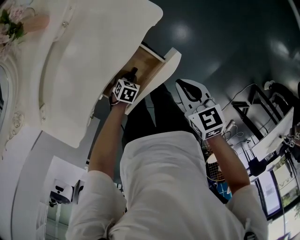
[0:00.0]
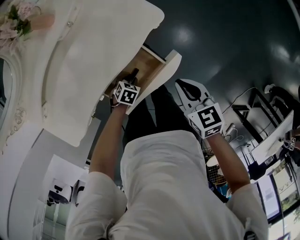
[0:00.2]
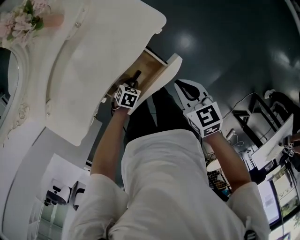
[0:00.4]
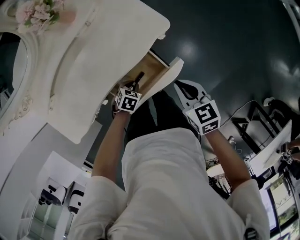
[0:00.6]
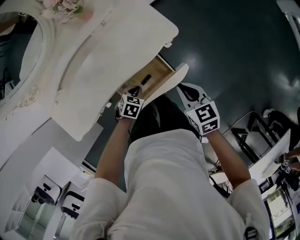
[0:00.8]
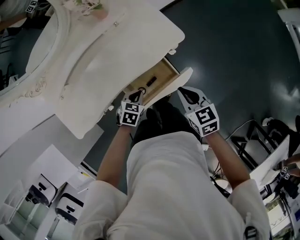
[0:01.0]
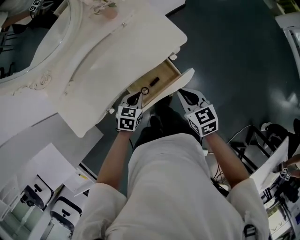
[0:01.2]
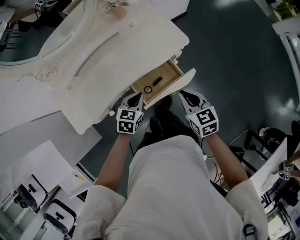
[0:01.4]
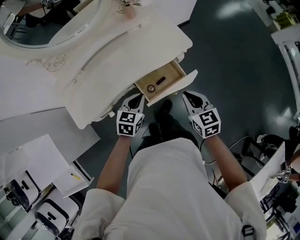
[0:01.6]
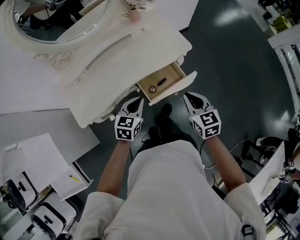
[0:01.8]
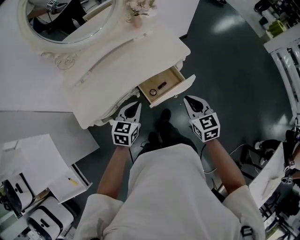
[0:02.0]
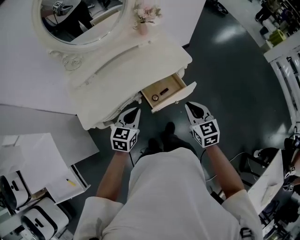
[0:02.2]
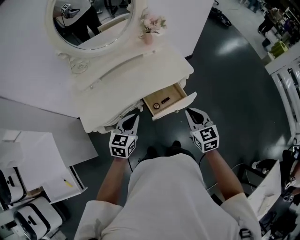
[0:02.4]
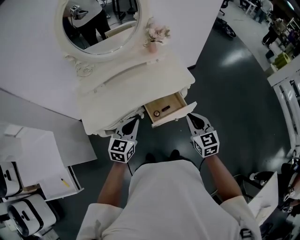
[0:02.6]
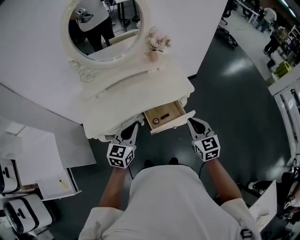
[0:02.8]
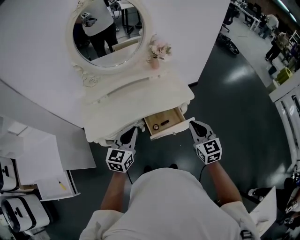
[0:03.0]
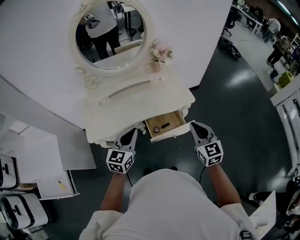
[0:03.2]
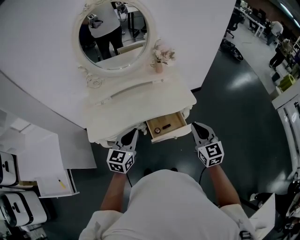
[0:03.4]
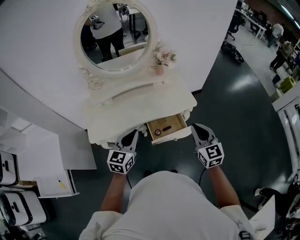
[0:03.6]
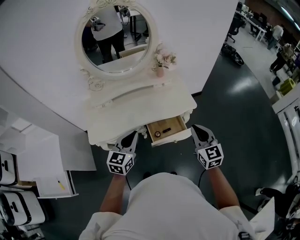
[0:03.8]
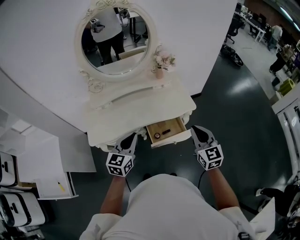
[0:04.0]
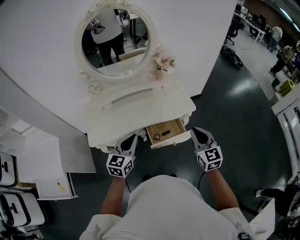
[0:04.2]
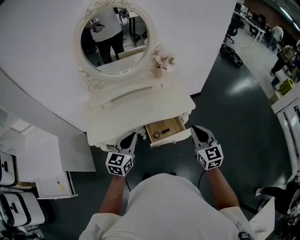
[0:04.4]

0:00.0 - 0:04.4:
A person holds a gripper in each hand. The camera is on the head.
0:00.0 - 0:01.4: The right gripper heads upward, covering approximately 10 cm; the left gripper moves upward, about 25 cm, tilts its fingers roughly 30 degrees upward, and closes up.
0:01.4 - 0:03.0: The right gripper heads upward, covering about 15 cm, and rotates about 20 degrees. The left gripper shifts roughly 25 cm upward and backward, and tilts its fingers roughly 30 degrees upward.
0:03.0 - 0:04.4: The grippers make only small movements.

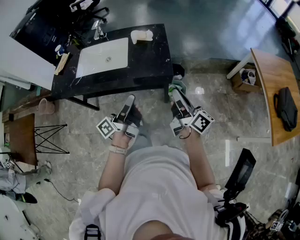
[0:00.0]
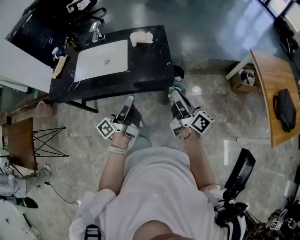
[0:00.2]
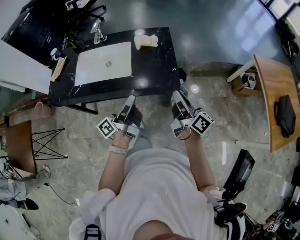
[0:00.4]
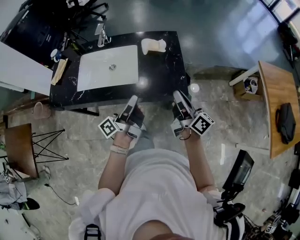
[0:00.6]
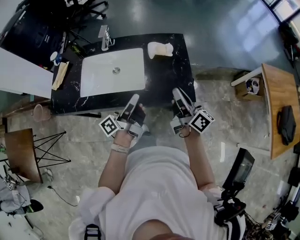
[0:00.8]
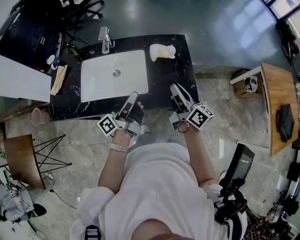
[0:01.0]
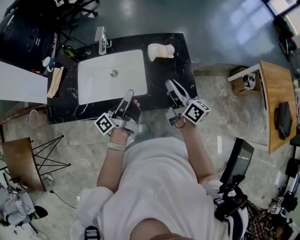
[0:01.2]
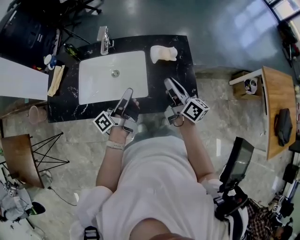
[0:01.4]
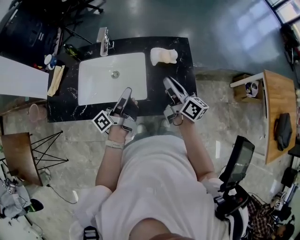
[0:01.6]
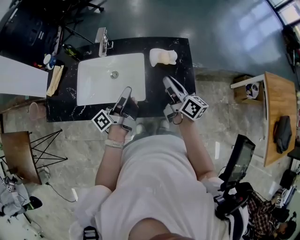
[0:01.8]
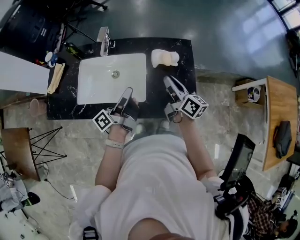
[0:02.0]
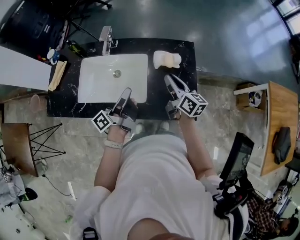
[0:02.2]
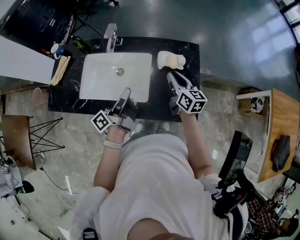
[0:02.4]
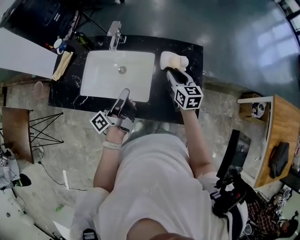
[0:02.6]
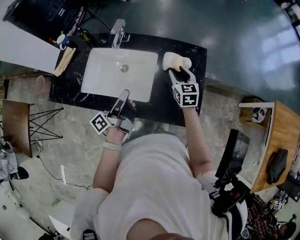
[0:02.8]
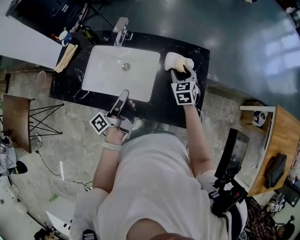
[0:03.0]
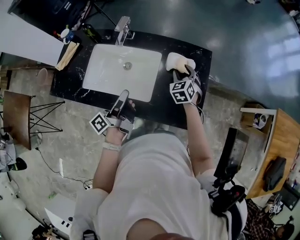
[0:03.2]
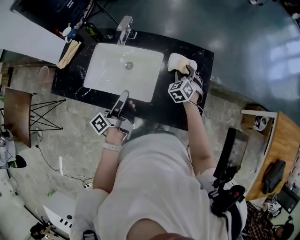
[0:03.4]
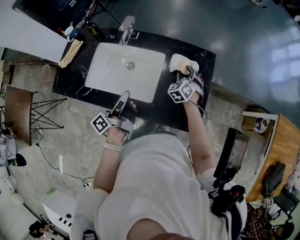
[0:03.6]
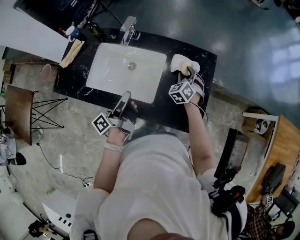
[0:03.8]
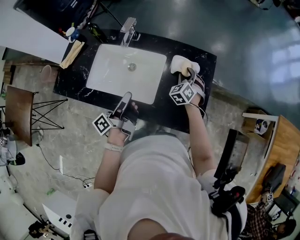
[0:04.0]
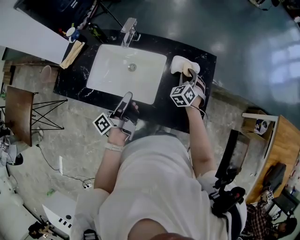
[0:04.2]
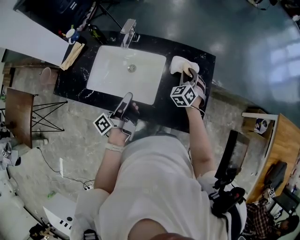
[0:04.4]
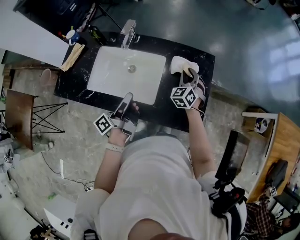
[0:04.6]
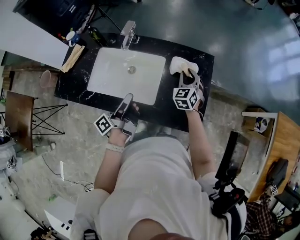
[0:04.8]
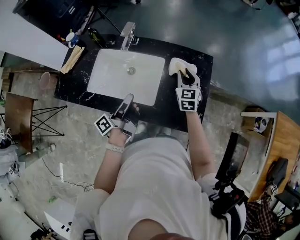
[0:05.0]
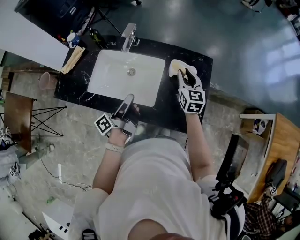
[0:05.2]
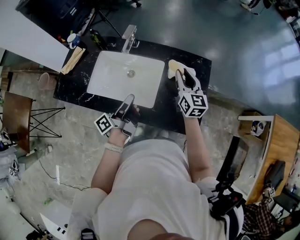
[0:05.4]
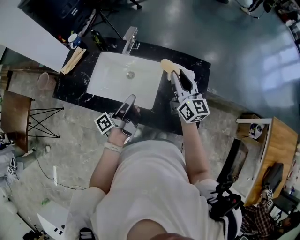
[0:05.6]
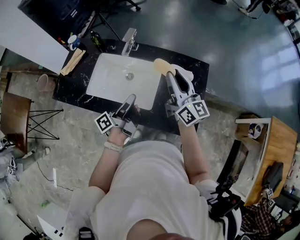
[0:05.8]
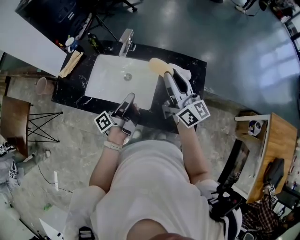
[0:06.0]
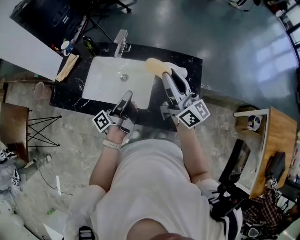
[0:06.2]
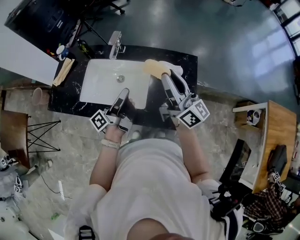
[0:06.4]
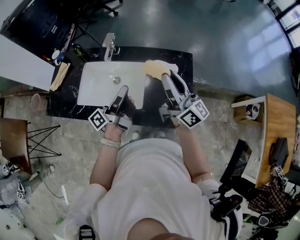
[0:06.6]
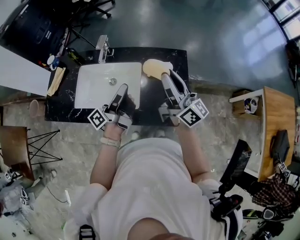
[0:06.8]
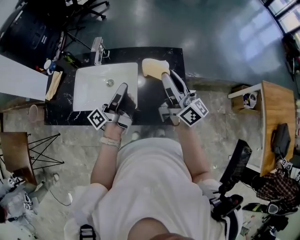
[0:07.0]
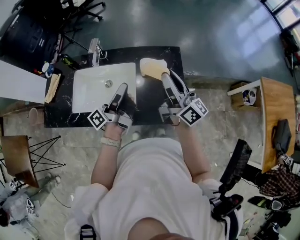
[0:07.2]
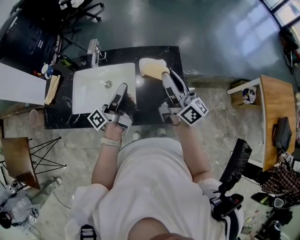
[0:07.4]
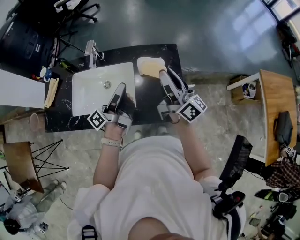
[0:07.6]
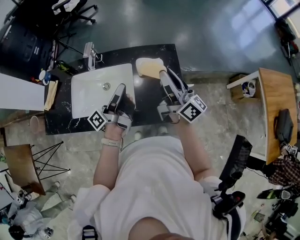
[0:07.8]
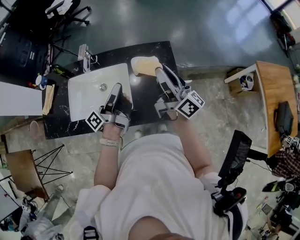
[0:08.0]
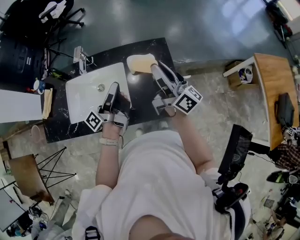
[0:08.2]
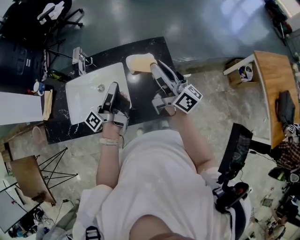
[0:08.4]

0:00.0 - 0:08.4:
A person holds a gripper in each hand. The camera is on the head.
0:00.0 - 0:01.4: The right gripper changes place by some 40 cm.
0:01.4 - 0:02.8: The right gripper shifts by about 20 cm, twists about 50 degrees counterclockwise, seen from behind, and opens.
0:02.8 - 0:04.2: The right gripper moves downward, some 5 cm, and changes its angle by roughly 40 degrees.
0:04.2 - 0:05.6: The right gripper moves upward, some 20 cm, and points its fingers approximately 40 degrees further upward.
0:05.6 - 0:07.0: The right gripper shifts by roughly 10 cm, and turns by about 30 degrees.

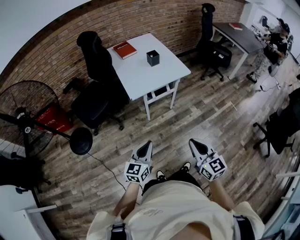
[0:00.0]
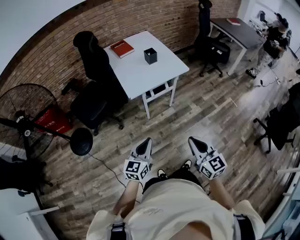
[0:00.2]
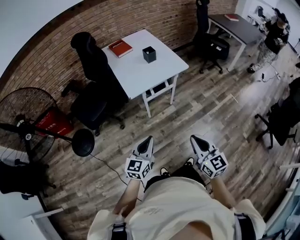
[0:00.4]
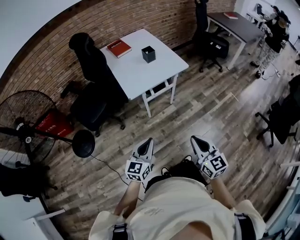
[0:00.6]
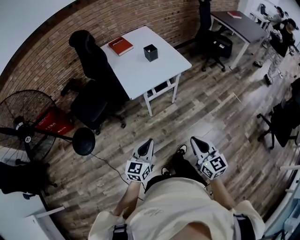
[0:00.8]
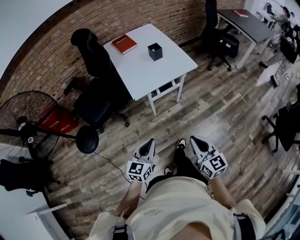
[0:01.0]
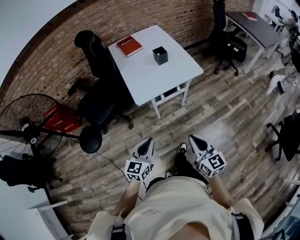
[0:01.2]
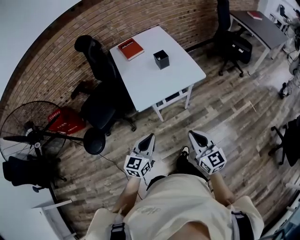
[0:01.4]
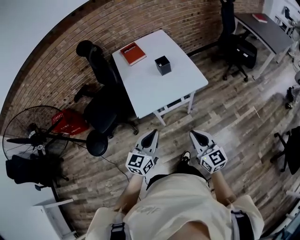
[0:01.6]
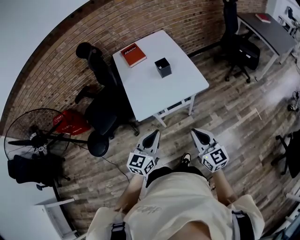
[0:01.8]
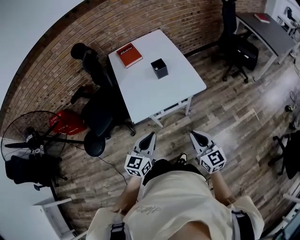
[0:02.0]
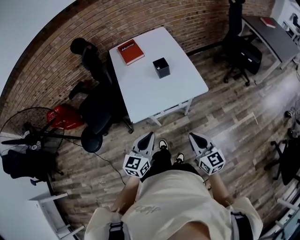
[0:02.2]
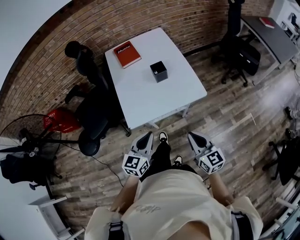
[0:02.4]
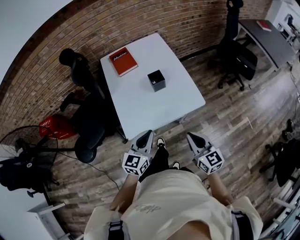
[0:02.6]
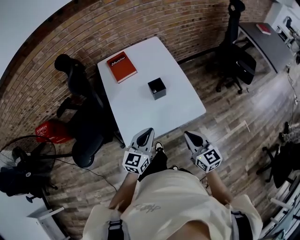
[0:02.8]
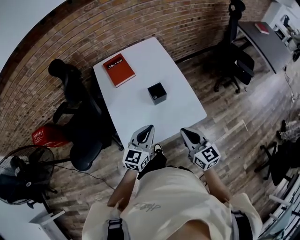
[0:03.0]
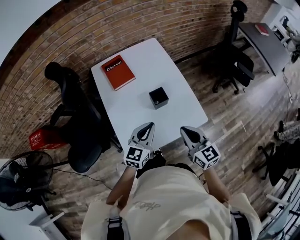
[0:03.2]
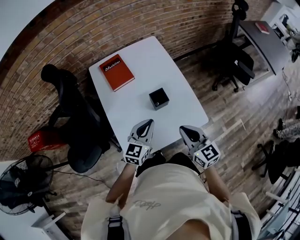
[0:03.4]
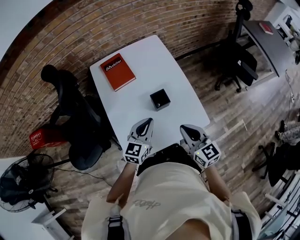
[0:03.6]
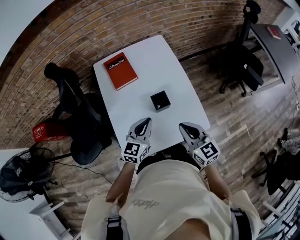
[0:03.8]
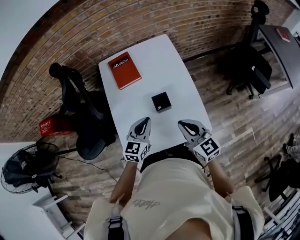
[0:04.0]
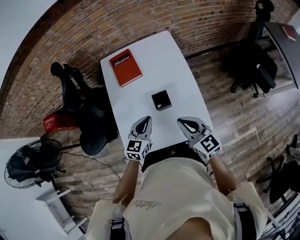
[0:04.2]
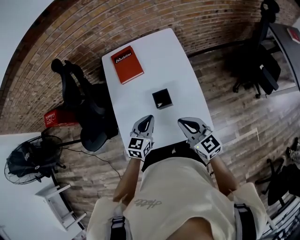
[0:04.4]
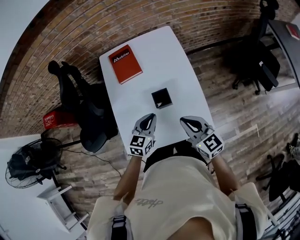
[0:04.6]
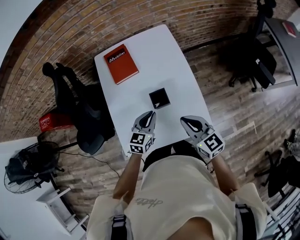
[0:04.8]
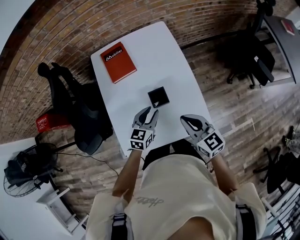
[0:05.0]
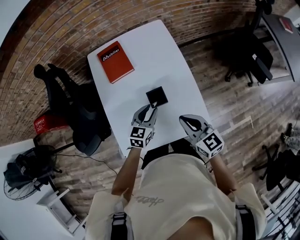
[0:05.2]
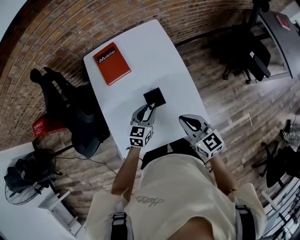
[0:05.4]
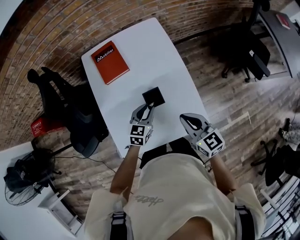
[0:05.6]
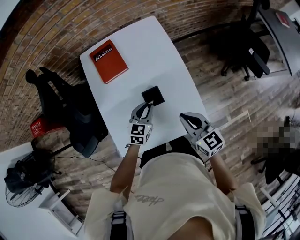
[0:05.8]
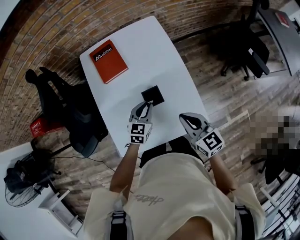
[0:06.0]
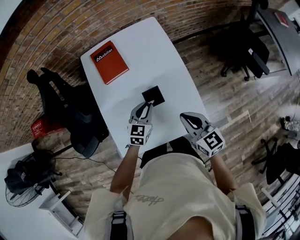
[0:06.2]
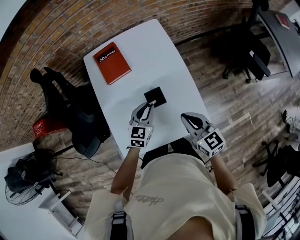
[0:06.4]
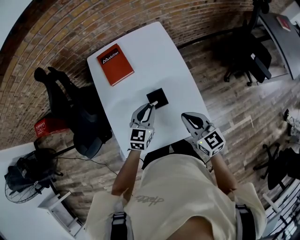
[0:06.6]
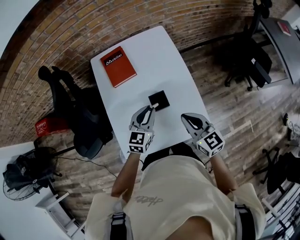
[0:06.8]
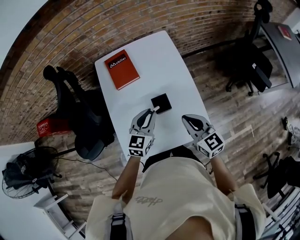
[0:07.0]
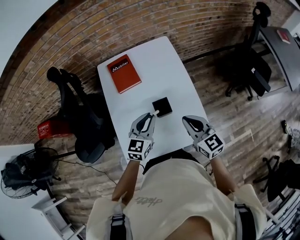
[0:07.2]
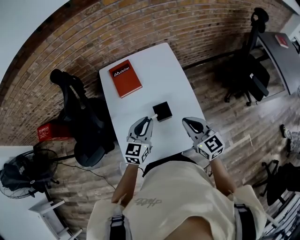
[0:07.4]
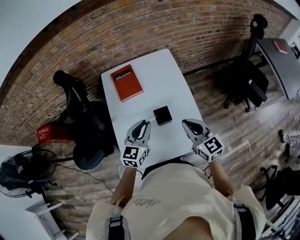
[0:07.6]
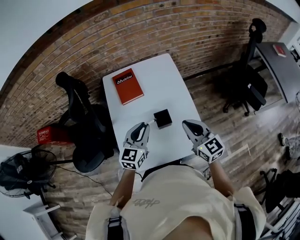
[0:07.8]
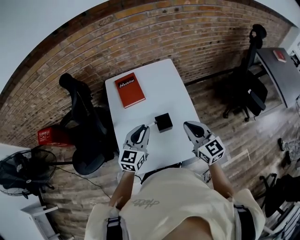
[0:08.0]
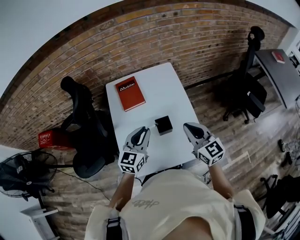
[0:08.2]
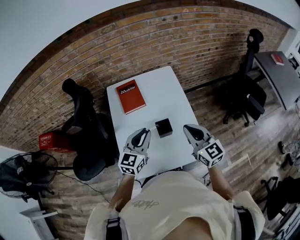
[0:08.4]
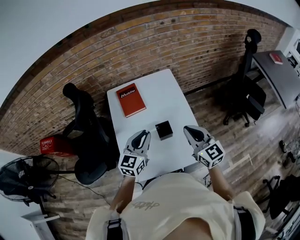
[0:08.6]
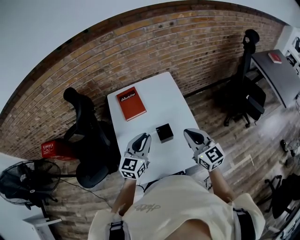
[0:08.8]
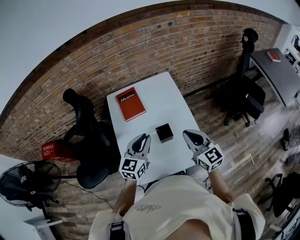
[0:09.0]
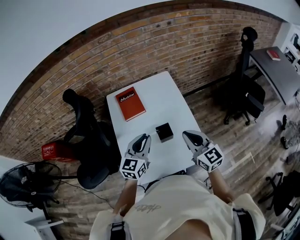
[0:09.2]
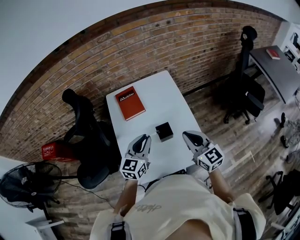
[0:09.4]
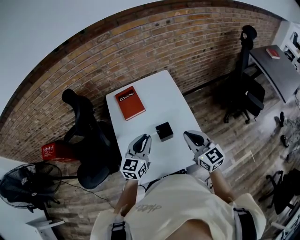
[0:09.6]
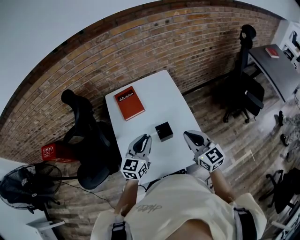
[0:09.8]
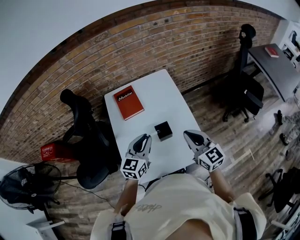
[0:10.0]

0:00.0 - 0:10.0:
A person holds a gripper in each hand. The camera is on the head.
0:00.0 - 0:01.4: The grippers both shift forward by roughly 20 cm.
0:01.4 - 0:02.8: The grippers both shift forward by some 30 cm.
0:02.8 - 0:04.2: Both grippers move forward, roughly 20 cm.
0:04.2 - 0:05.8: The left gripper moves downward and forward, roughly 10 cm. Meanwhile the right gripper ends up some 5 cm from where it was.
0:05.8 - 0:07.2: The left gripper goes approximately 10 cm upward.
0:07.2 - 0:08.6: Both grippers travel together upward, some 10 cm.
0:08.6 - 0:10.0: The grippers make only small movements.

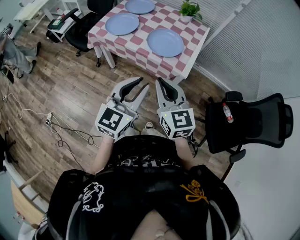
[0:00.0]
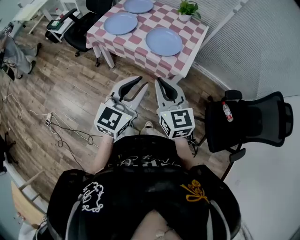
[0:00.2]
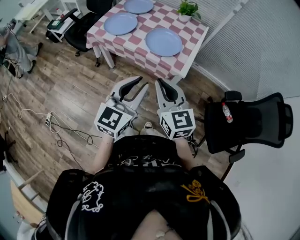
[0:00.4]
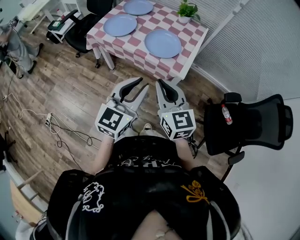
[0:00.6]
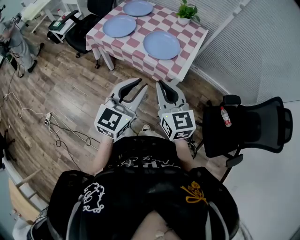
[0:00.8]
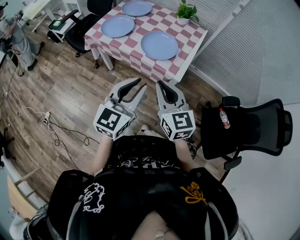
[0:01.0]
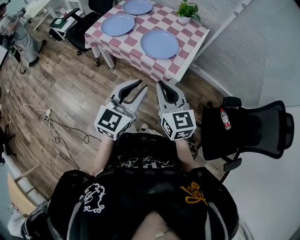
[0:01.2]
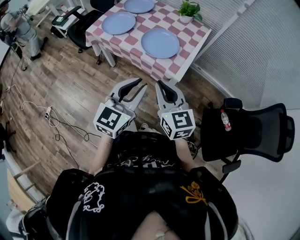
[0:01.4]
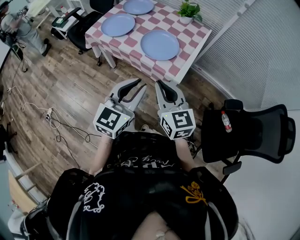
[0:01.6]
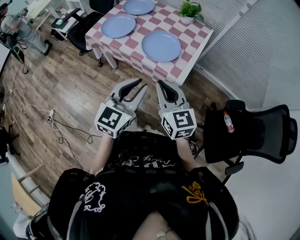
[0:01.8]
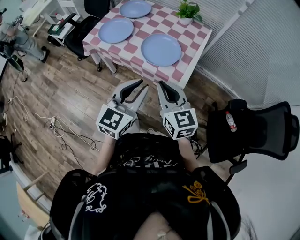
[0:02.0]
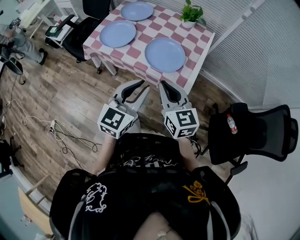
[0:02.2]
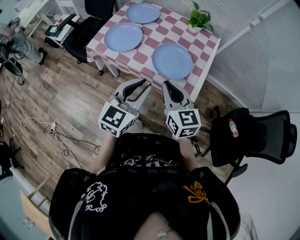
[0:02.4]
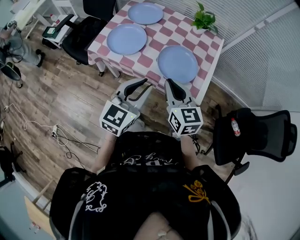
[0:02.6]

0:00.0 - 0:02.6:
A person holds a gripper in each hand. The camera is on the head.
0:00.0 - 0:01.2: The two grippers go some 5 cm to the right.
0:01.2 - 0:02.6: Both grippers move forward and to the left, some 25 cm.
